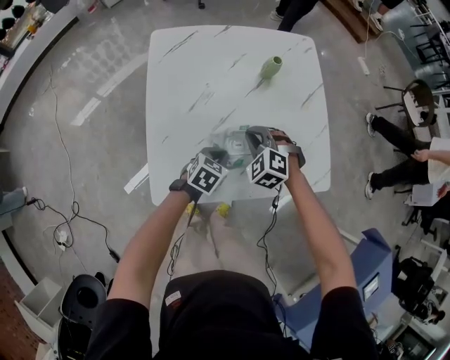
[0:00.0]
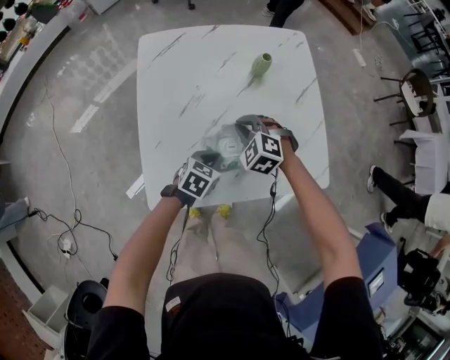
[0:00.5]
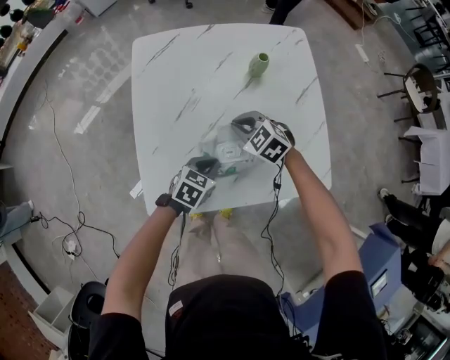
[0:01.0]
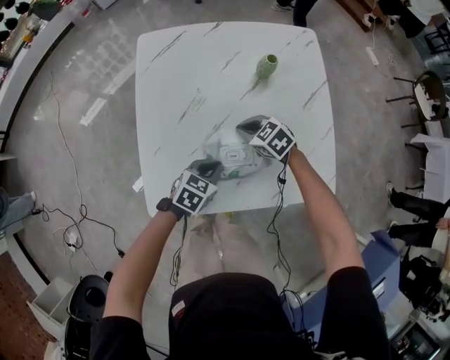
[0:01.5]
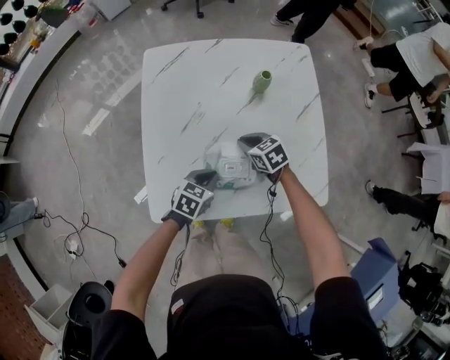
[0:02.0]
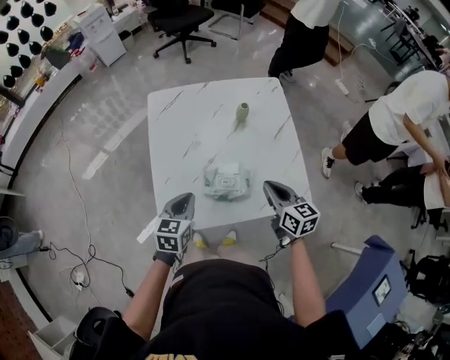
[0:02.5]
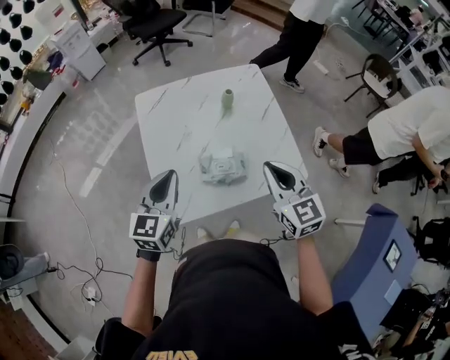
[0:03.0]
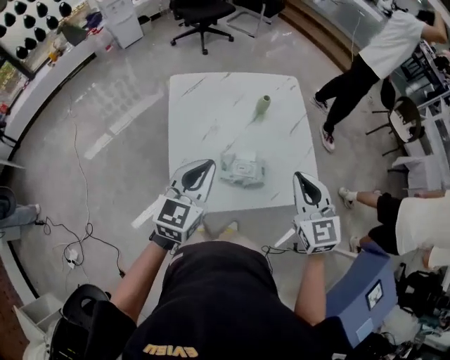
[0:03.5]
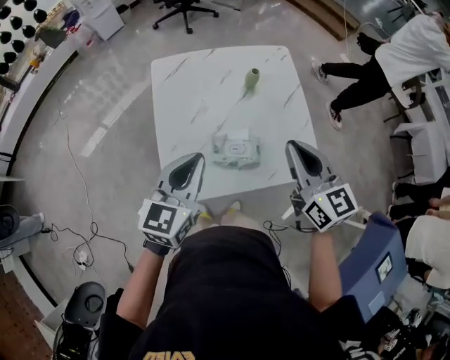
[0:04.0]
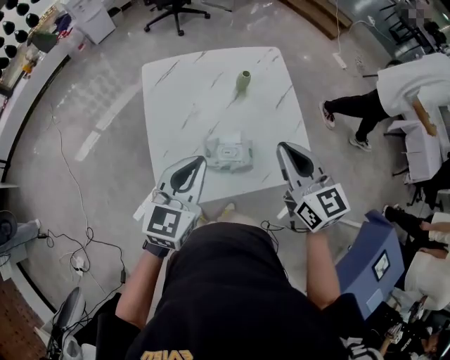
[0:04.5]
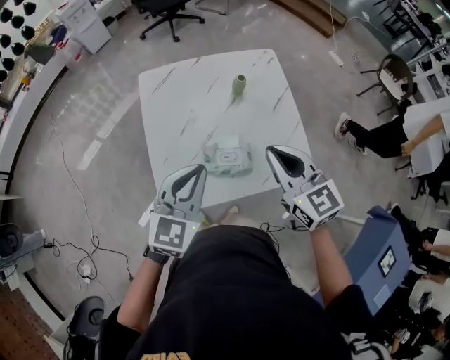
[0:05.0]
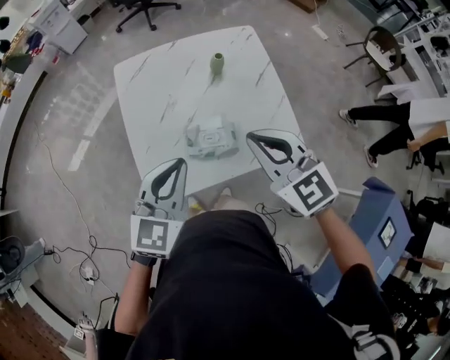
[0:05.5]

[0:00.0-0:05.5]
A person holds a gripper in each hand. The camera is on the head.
0:00.0 to 0:02.0: The right gripper goes approximately 5 cm downward and forward, and twists roughly 50 degrees clockwise, seen from behind.
0:02.0 to 0:03.5: The right gripper shifts some 40 cm upward and backward, and tilts its fingers roughly 30 degrees upward; the left gripper goes roughly 35 cm upward, and angles its fingers upward, by roughly 30 degrees.

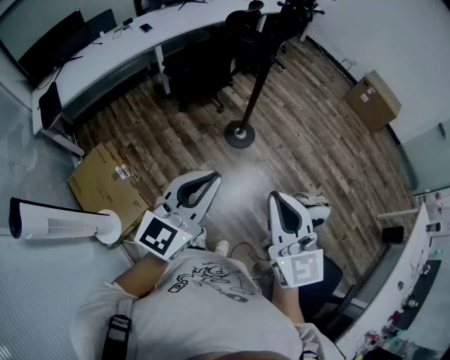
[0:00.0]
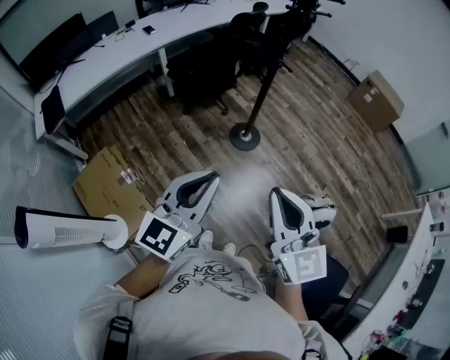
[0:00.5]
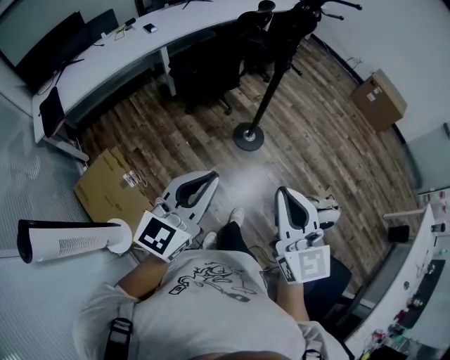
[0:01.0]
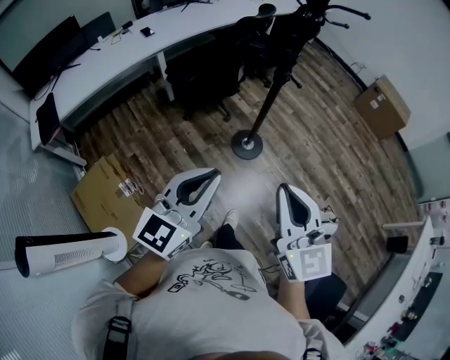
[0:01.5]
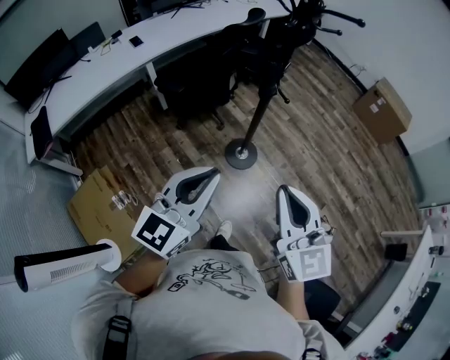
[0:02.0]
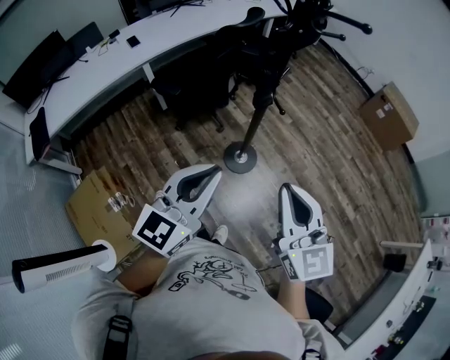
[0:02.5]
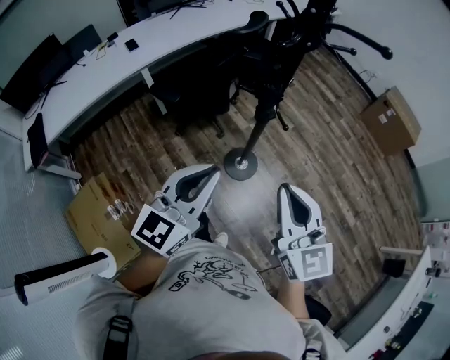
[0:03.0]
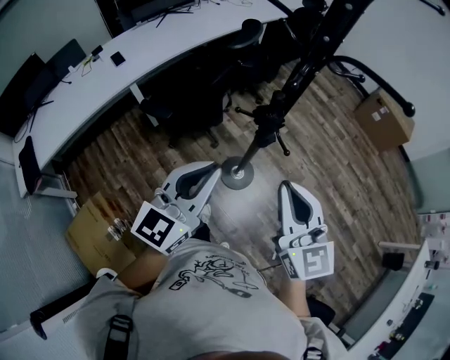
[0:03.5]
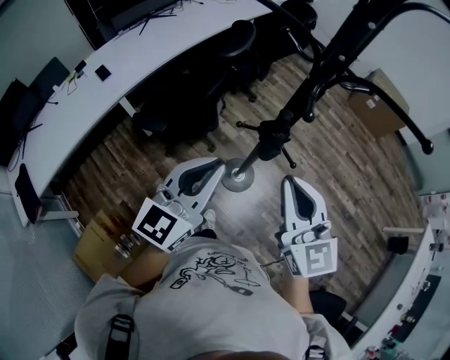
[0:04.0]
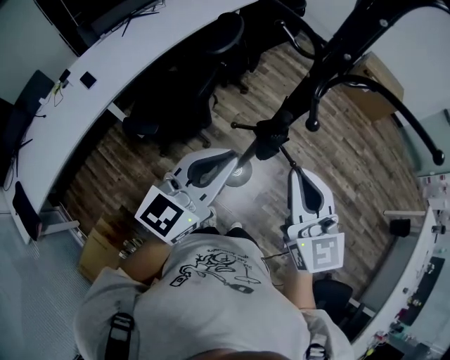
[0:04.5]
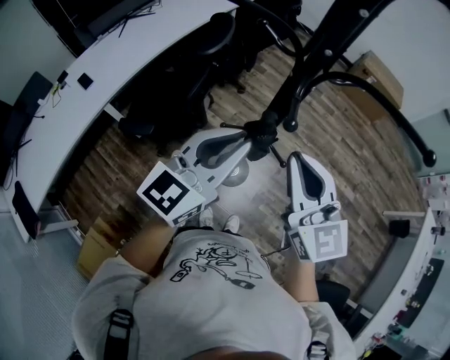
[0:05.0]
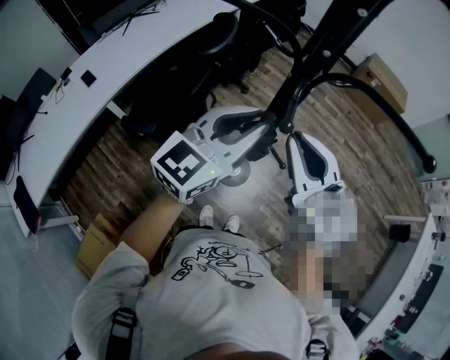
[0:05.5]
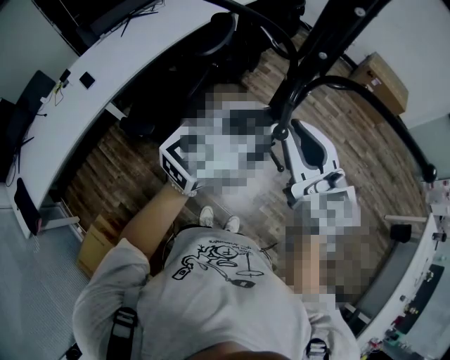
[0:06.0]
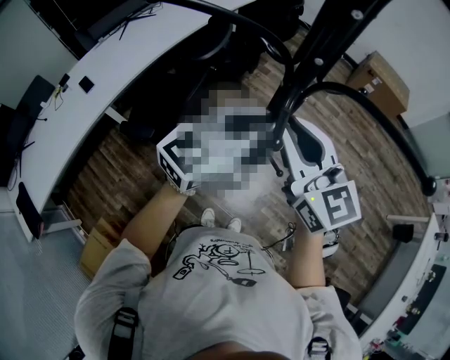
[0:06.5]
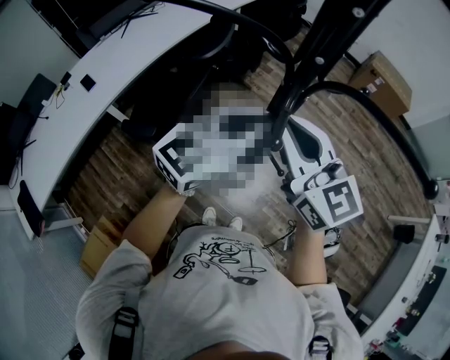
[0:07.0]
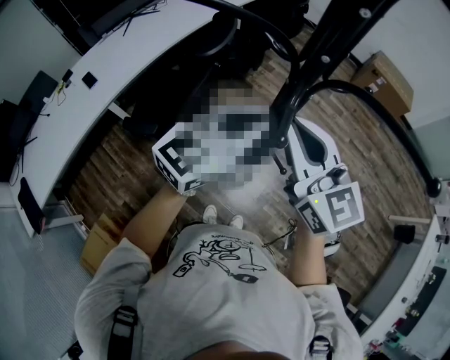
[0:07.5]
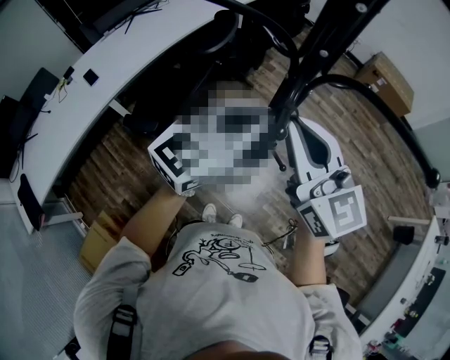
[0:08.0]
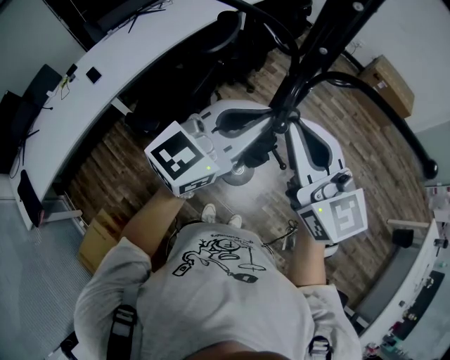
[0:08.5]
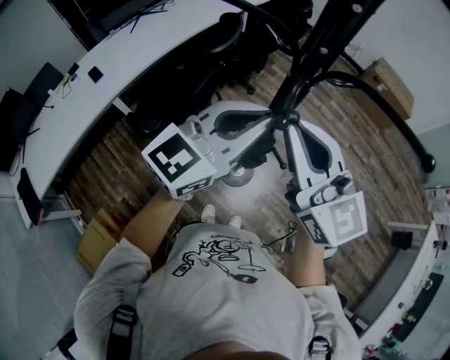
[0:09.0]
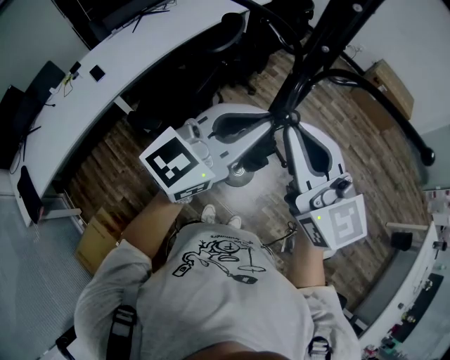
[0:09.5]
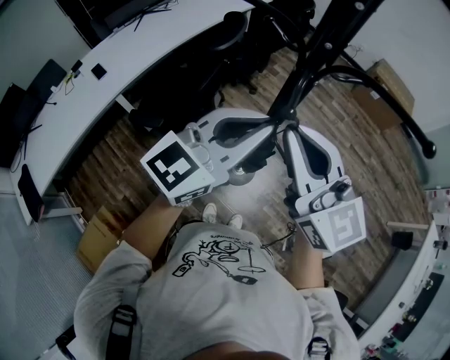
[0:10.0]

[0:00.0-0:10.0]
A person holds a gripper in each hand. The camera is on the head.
0:00.0 to 0:02.0: The two grippers go approximately 25 cm forward.
0:02.0 to 0:04.0: Both grippers move forward, about 35 cm.
0:04.0 to 0:06.0: The left gripper goes about 20 cm forward and to the right, and swivels about 20 degrees, while the right gripper goes about 15 cm forward.
0:06.0 to 0:08.0: The grippers move only a little.
0:08.0 to 0:10.0: The two grippers go approximately 5 cm backward.

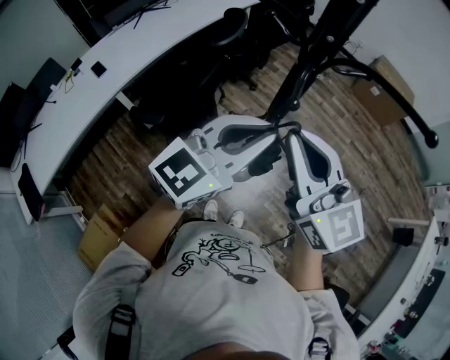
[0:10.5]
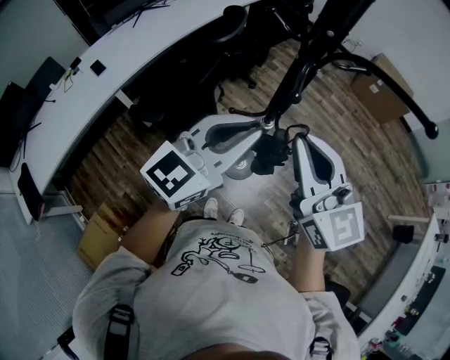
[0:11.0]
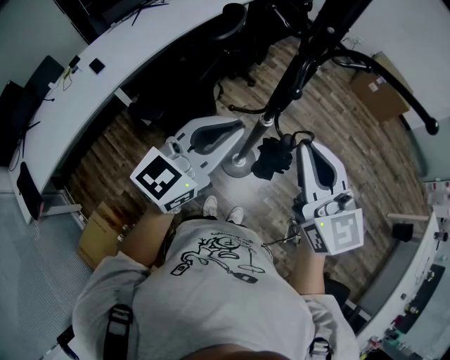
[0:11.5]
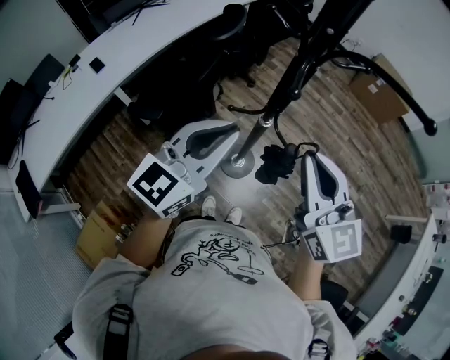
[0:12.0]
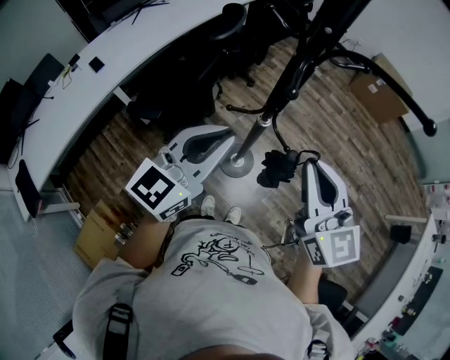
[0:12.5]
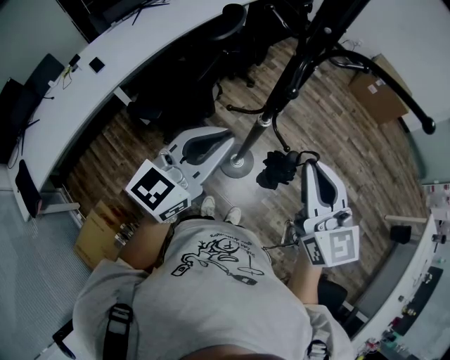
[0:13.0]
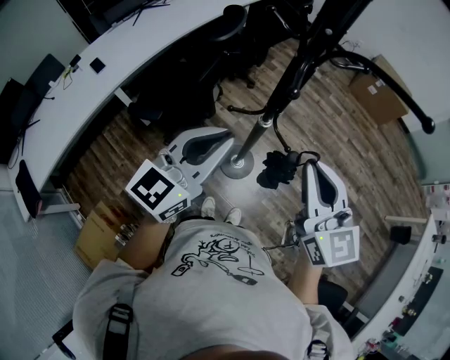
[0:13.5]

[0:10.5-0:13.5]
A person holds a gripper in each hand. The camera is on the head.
0:10.5 to 0:12.0: The right gripper moves to the right, about 5 cm. The left gripper moves to the left, about 5 cm.
0:12.0 to 0:13.5: There are only small adjustments of the grippers.

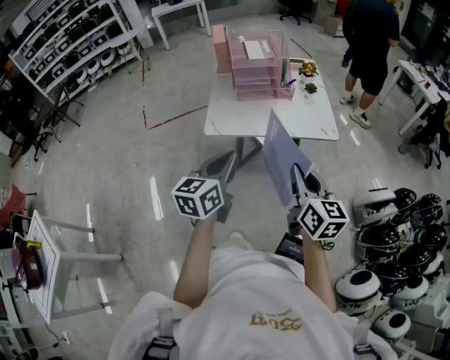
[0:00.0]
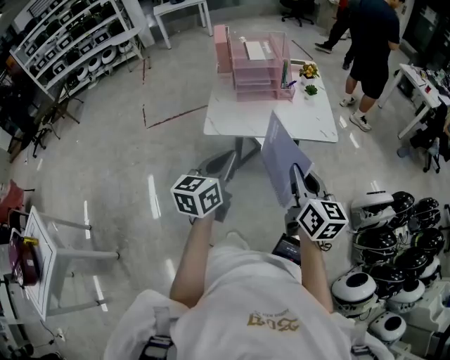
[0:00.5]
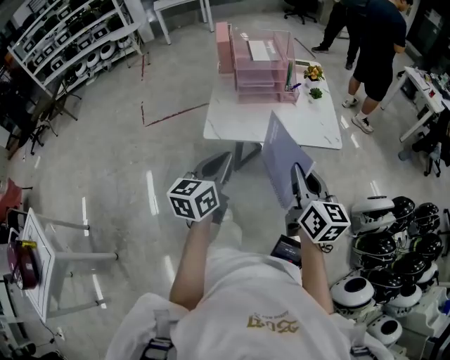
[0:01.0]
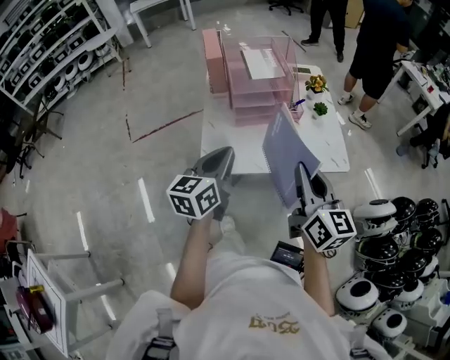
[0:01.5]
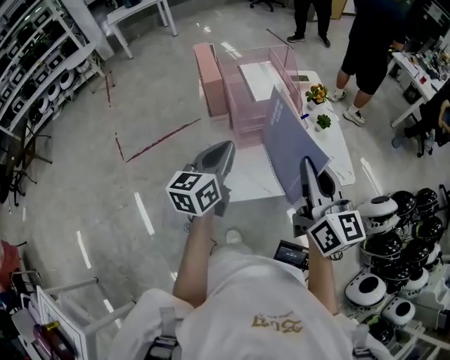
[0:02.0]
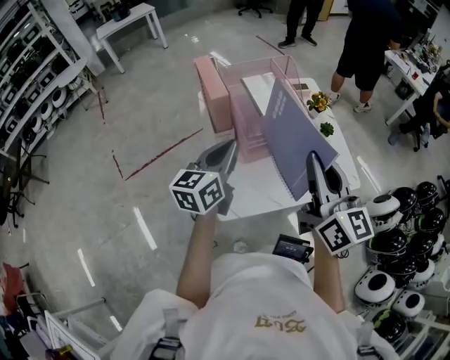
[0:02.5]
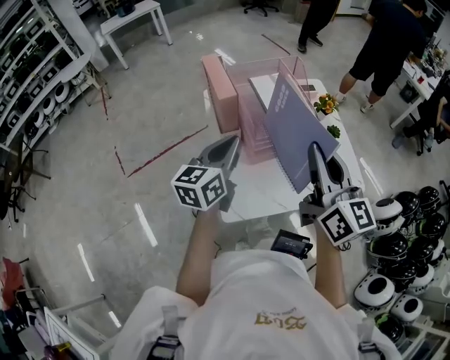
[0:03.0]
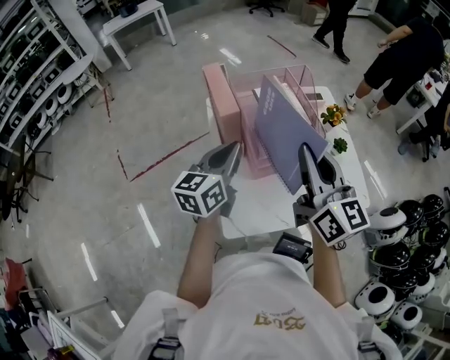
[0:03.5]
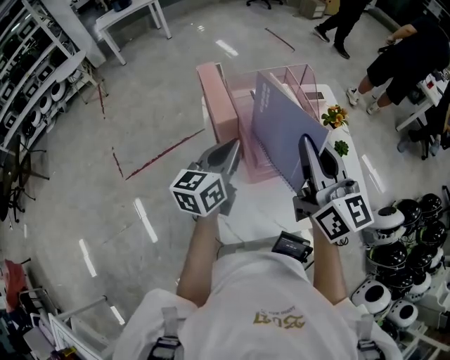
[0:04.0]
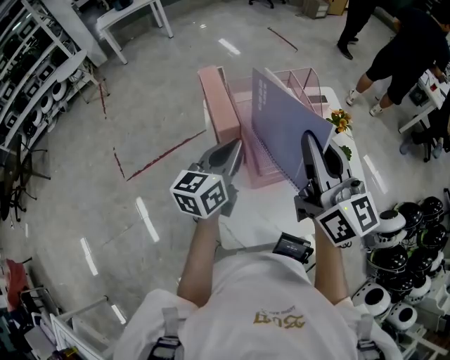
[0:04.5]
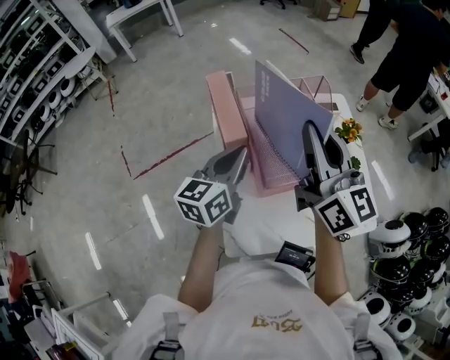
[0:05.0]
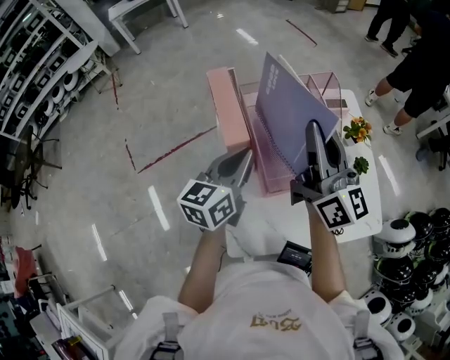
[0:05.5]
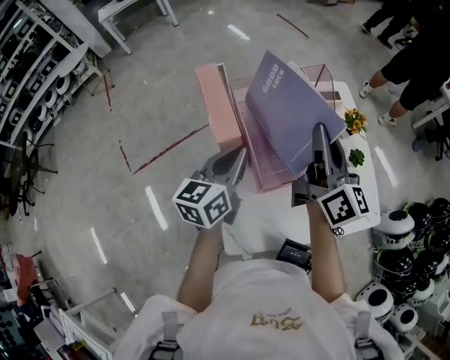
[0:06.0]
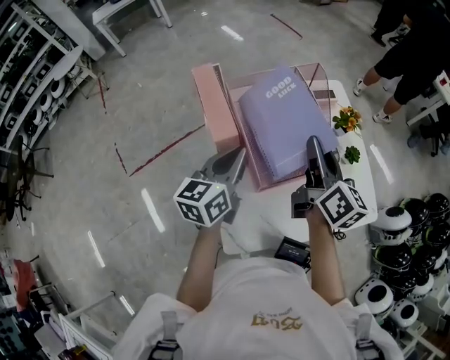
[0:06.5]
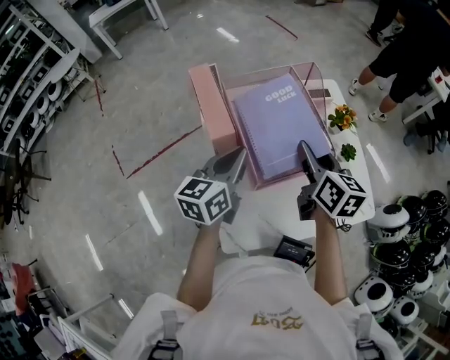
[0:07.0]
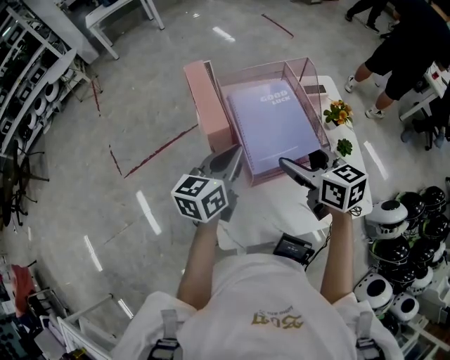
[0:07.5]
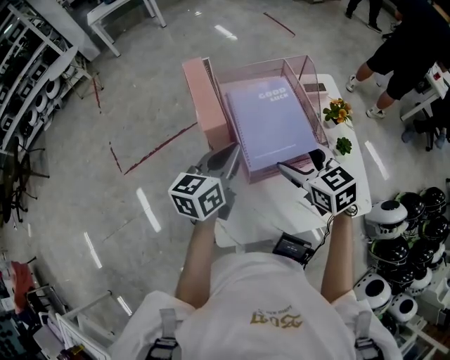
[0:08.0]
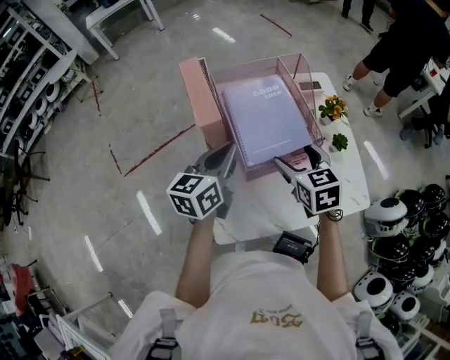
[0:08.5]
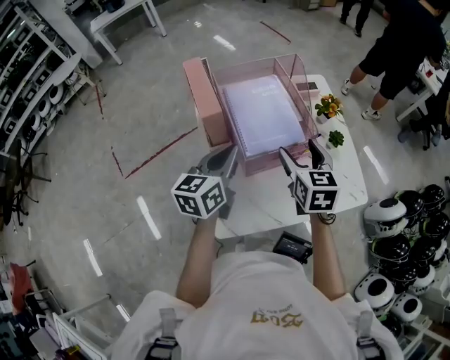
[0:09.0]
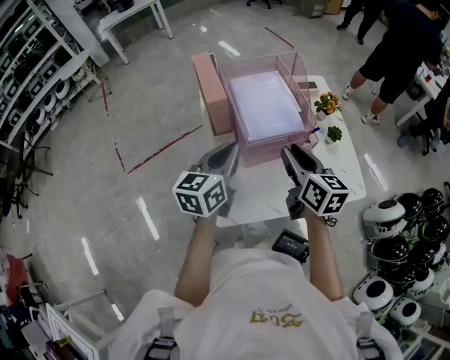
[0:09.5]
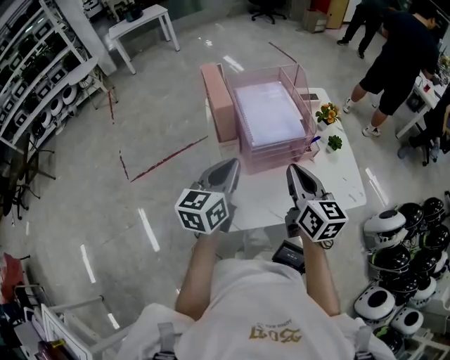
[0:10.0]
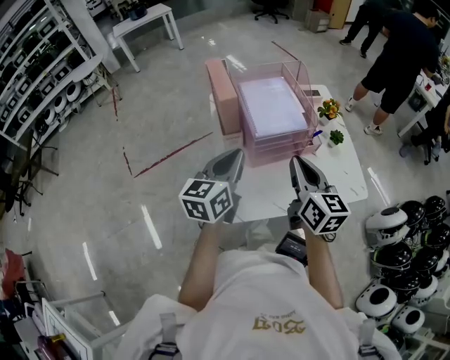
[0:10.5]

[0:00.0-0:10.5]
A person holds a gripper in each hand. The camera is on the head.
0:00.0 to 0:02.0: The right gripper goes roughly 30 cm forward and to the left. The left gripper goes some 35 cm forward.
0:02.0 to 0:04.0: The left gripper shifts approximately 15 cm forward. The right gripper travels forward and to the left by approximately 20 cm.
0:04.0 to 0:06.5: The right gripper travels downward and forward by some 15 cm, and rotates some 30 degrees, while the left gripper ends up some 5 cm from where it was.
0:06.5 to 0:08.5: The right gripper goes approximately 10 cm downward, tilts its fingers roughly 30 degrees downward, and opens its fingers.
0:08.5 to 0:10.5: The right gripper moves backward and upward, some 15 cm, turns by some 30 degrees, and closes; the left gripper is displaced backward by roughly 15 cm.
